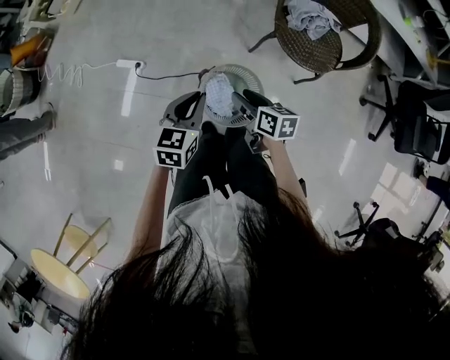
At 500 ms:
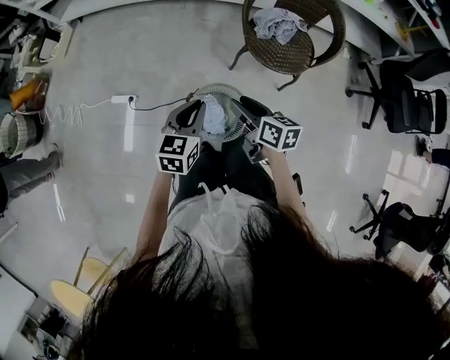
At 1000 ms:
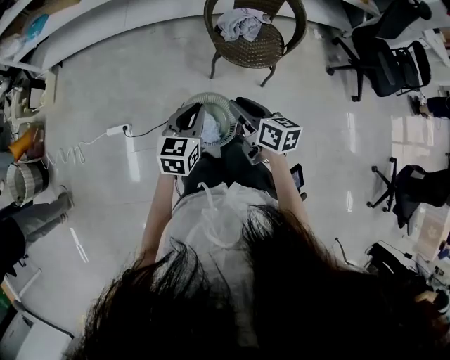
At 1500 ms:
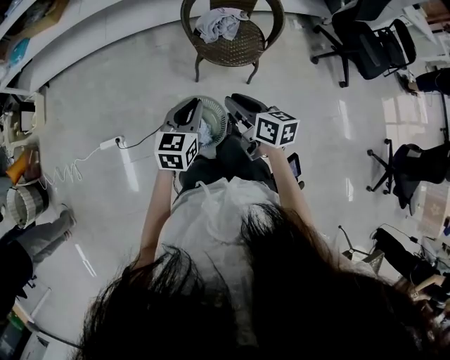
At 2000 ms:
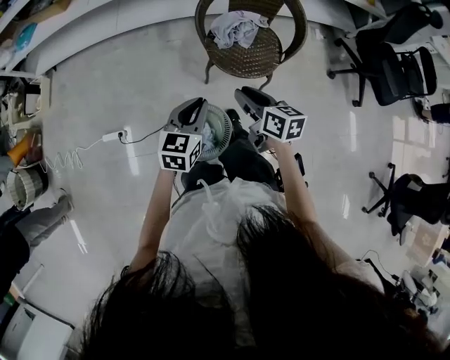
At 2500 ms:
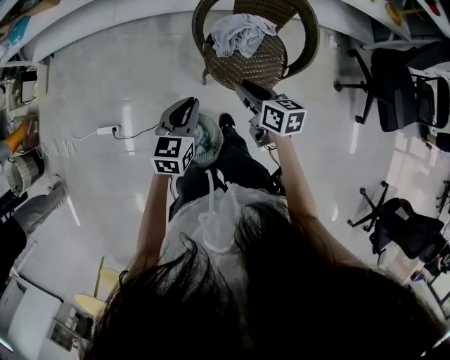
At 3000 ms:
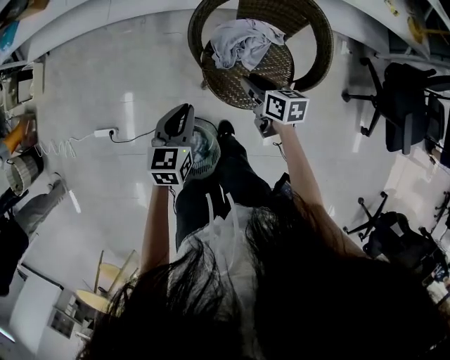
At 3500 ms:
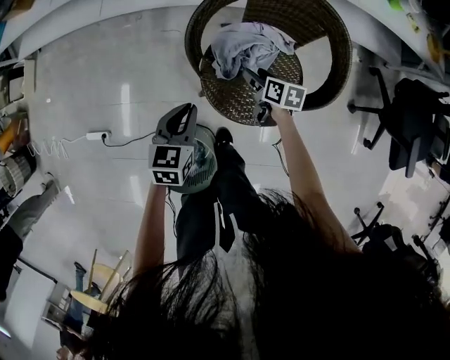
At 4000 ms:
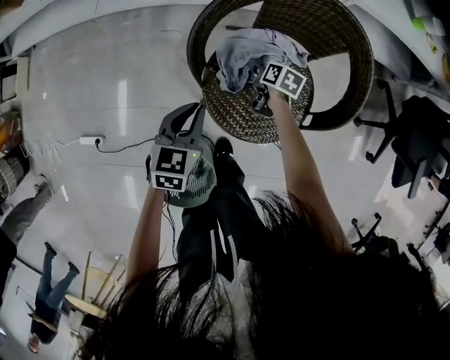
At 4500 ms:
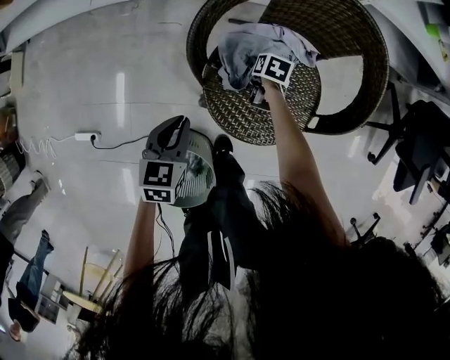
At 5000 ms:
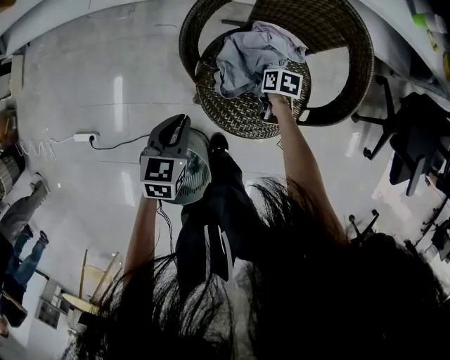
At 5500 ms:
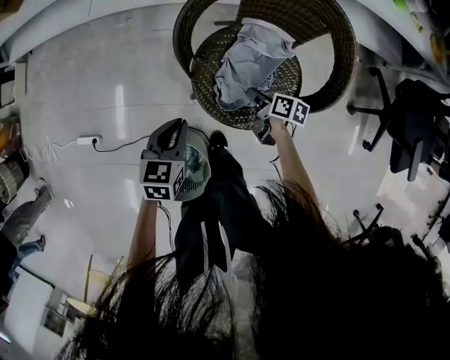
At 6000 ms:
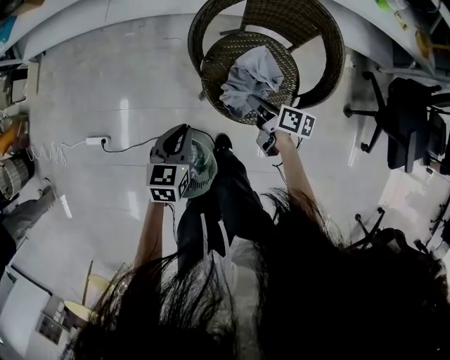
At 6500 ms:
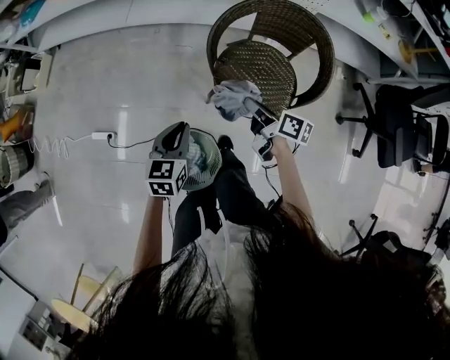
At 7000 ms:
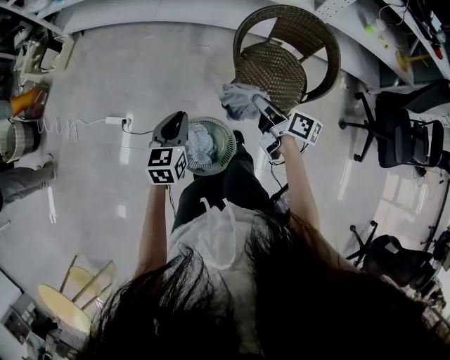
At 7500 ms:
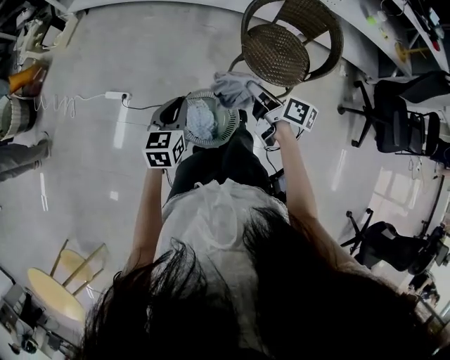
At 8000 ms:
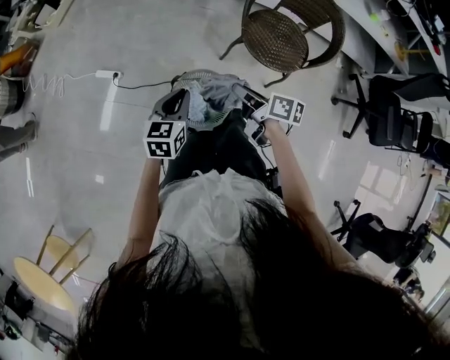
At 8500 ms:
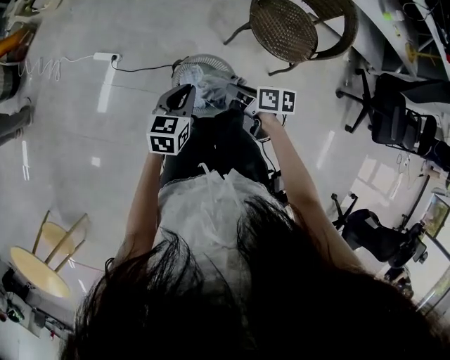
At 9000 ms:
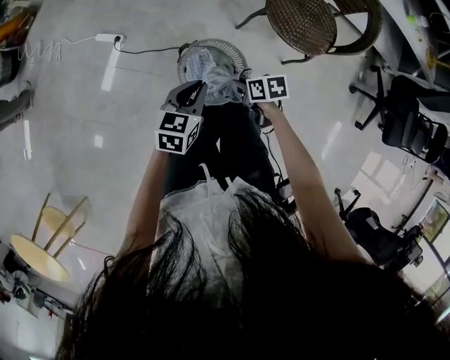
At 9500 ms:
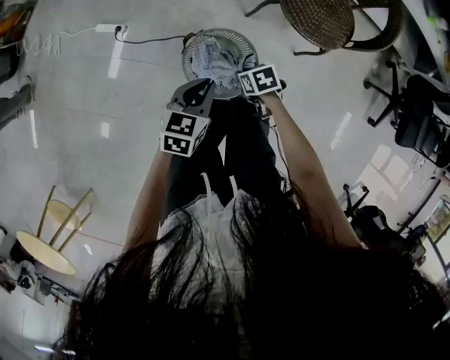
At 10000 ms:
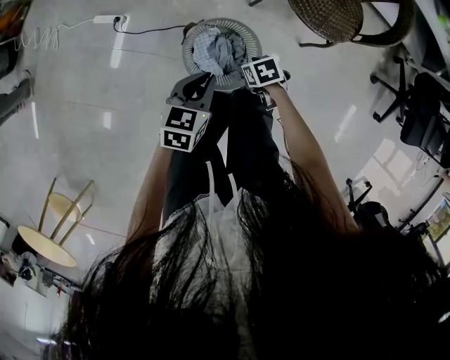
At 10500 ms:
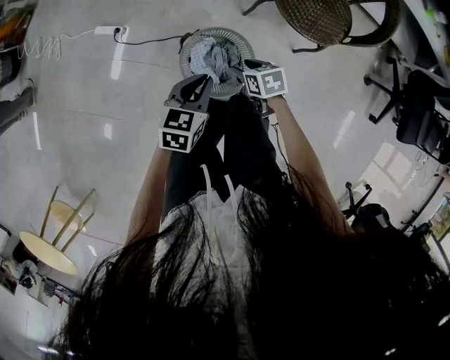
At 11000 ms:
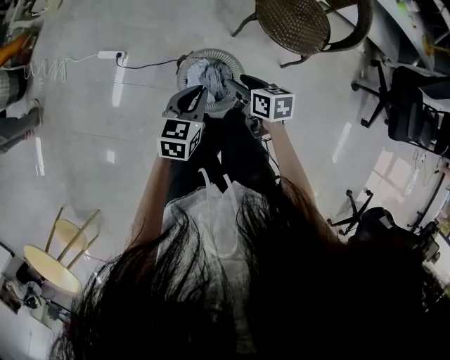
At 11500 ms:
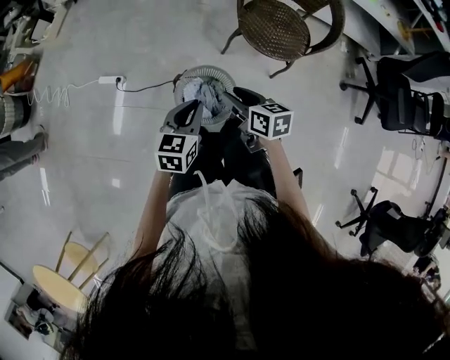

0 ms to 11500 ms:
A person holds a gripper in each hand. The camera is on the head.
0 ms to 2000 ms: The right gripper changes place by some 25 cm, and rotates approximately 20 degrees, while the left gripper ends up some 25 cm from where it was, and rotates roughly 20 degrees.
2000 ms to 4000 ms: The right gripper shifts some 60 cm downward and forward, angles its fingers downward, by about 30 degrees, and opens up; the left gripper travels forward and downward by some 40 cm.
4000 ms to 6000 ms: The right gripper heads backward and upward, covering roughly 25 cm, swivels approximately 30 degrees, and closes its fingers; the left gripper is displaced backward and upward by roughly 15 cm.
6000 ms to 7500 ms: The right gripper is displaced to the left, upward and backward by some 40 cm. The left gripper heads to the left, backward and upward, covering some 35 cm.
7500 ms to 9500 ms: The left gripper moves downward and backward, approximately 15 cm. The right gripper moves downward, approximately 30 cm, and tilts its fingers roughly 50 degrees downward.
9500 ms to 11500 ms: The right gripper is displaced upward by some 25 cm, angles its fingers upward, by roughly 30 degrees, and opens up, while the left gripper shifts about 10 cm upward.

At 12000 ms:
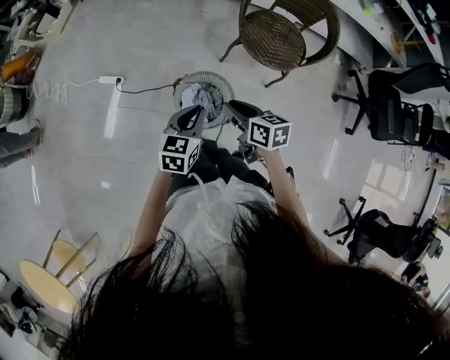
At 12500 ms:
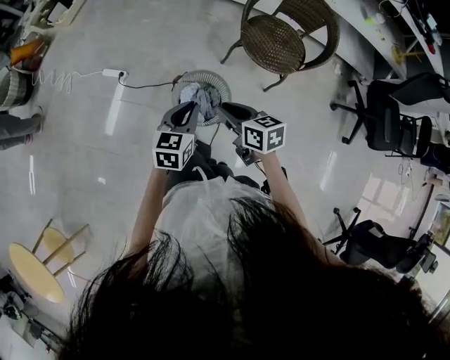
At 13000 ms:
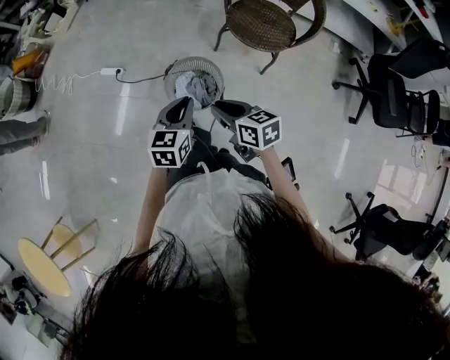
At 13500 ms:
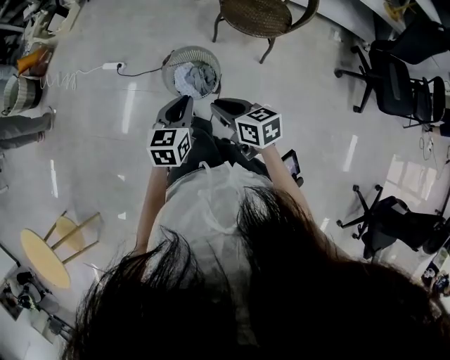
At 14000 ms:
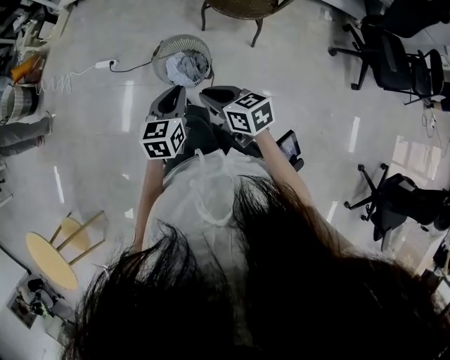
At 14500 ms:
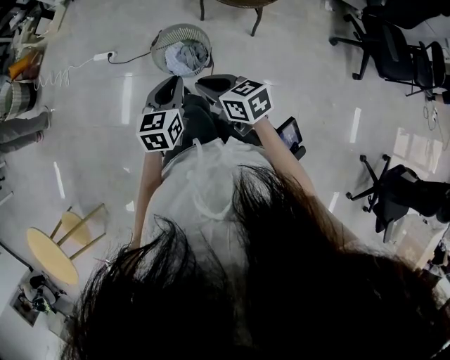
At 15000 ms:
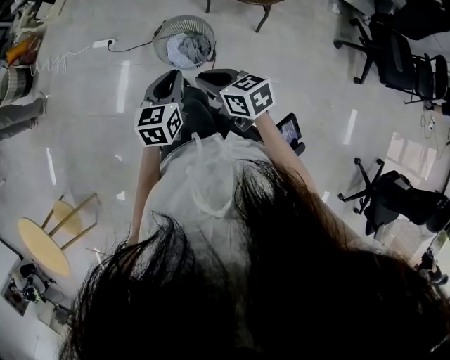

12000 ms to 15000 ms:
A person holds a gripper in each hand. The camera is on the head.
12000 ms to 13500 ms: Both grippers move backward, some 20 cm.
13500 ms to 15000 ms: The grippers move only a little.

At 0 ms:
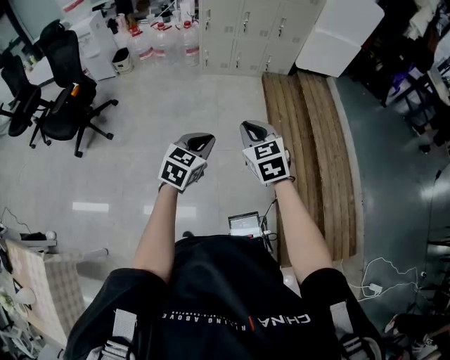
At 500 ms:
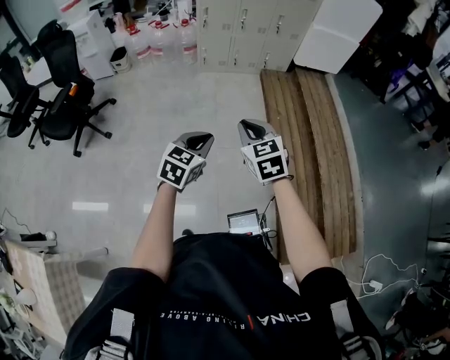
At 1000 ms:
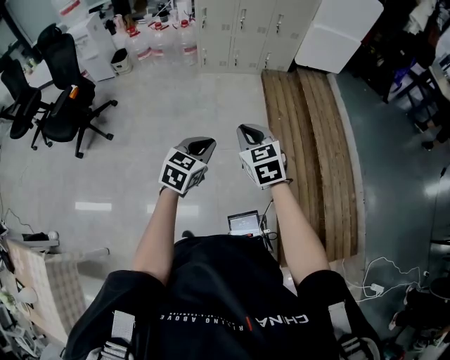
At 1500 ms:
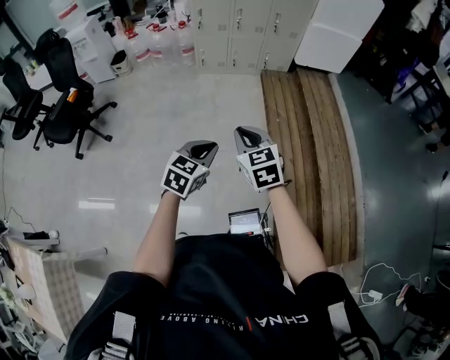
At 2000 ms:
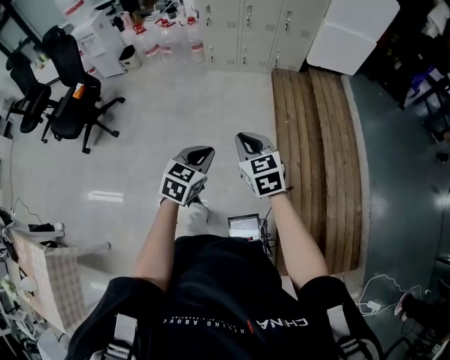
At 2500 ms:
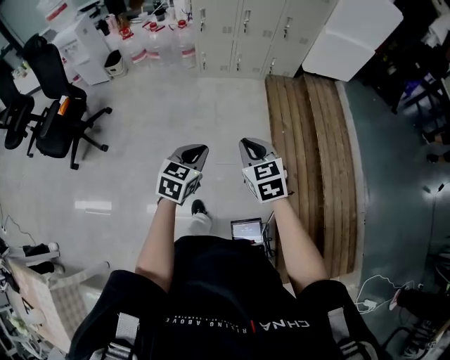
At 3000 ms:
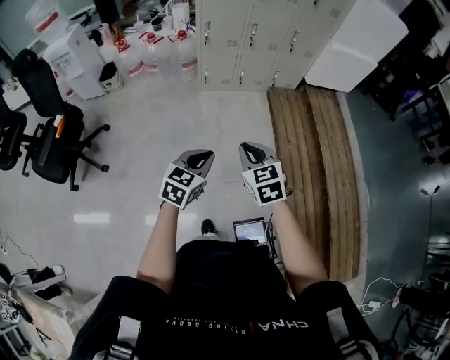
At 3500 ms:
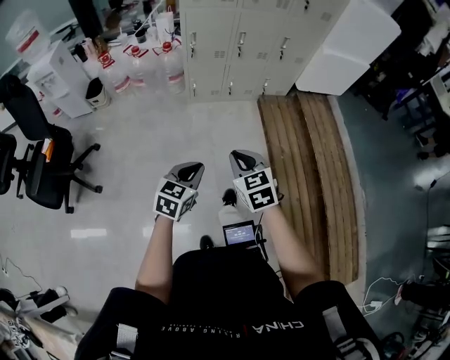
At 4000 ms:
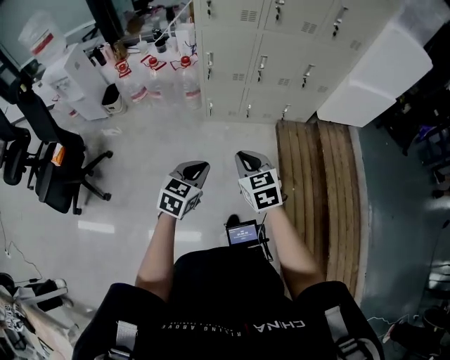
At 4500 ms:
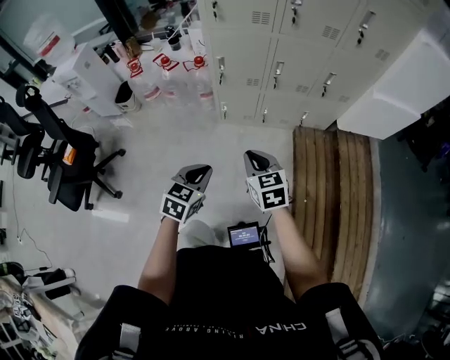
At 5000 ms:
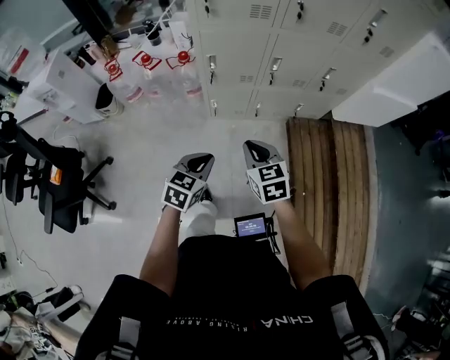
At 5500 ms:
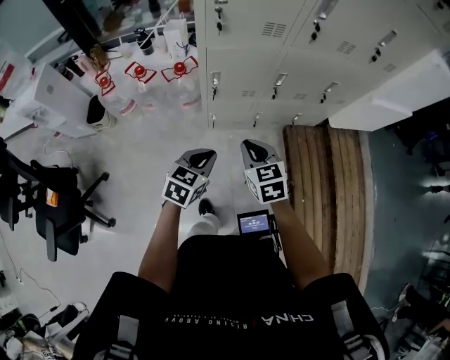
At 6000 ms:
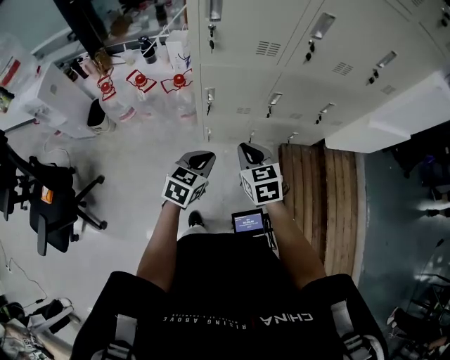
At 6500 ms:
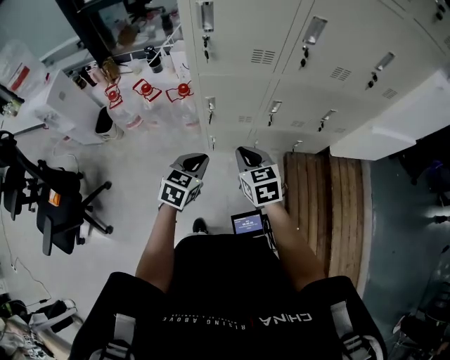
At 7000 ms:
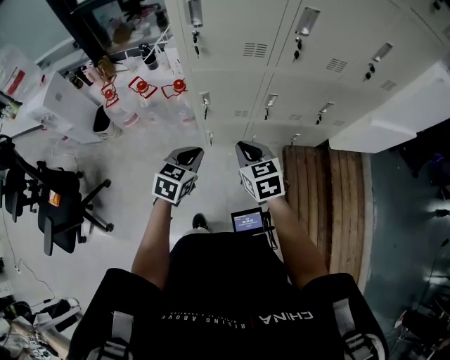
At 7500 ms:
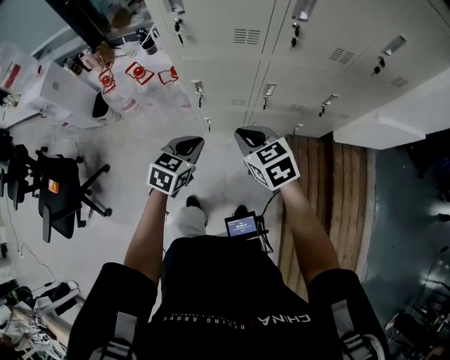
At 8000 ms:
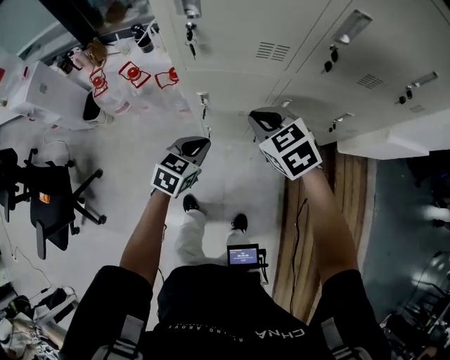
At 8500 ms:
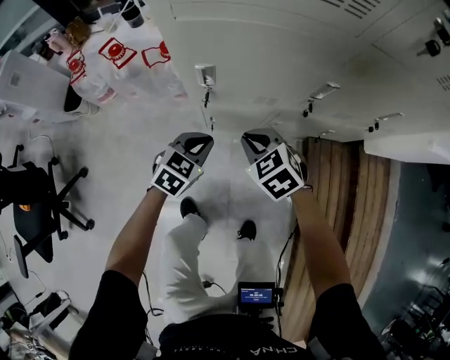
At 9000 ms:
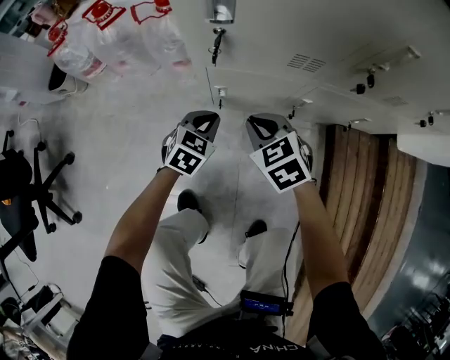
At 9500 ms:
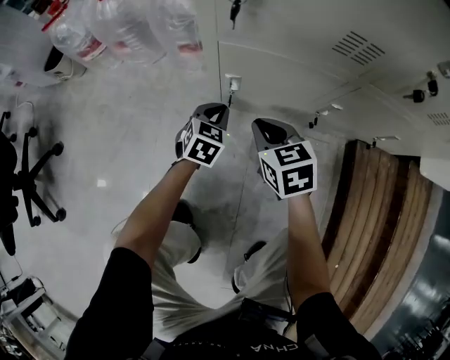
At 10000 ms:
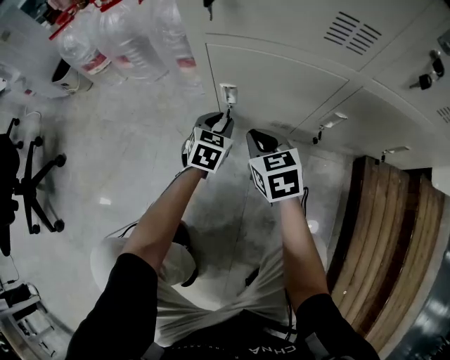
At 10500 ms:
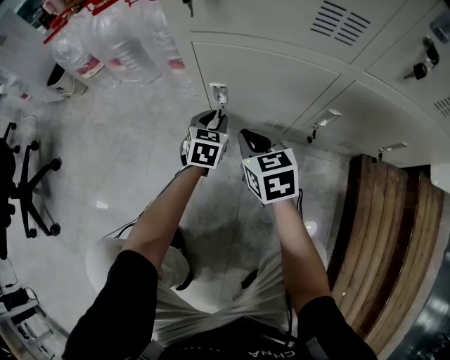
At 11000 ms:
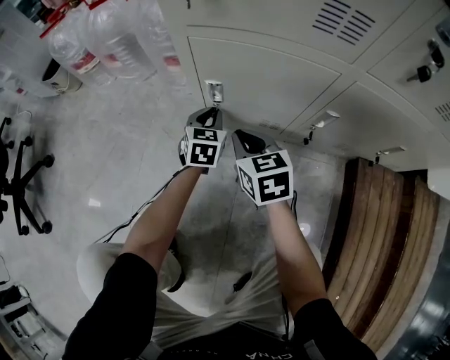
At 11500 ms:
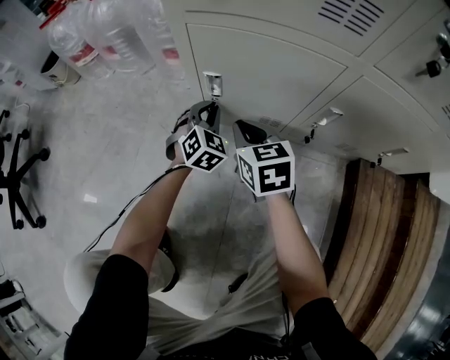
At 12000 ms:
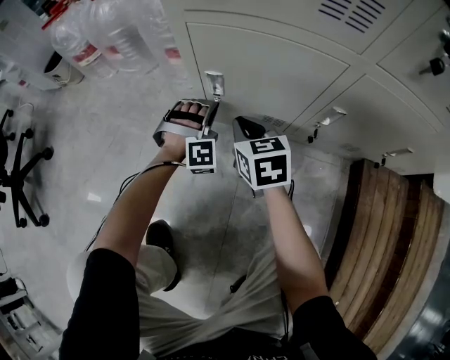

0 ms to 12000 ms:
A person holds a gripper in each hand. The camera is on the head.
0 ms to 2000 ms: The left gripper shifts about 10 cm to the right, while the right gripper goes approximately 10 cm to the right and forward.
2000 ms to 4000 ms: The two grippers travel together, forward, about 60 cm.
4000 ms to 6000 ms: The two grippers go approximately 40 cm forward.
6000 ms to 8000 ms: Both grippers travel together forward, approximately 15 cm. The right gripper rotates roughly 20 degrees.
8000 ms to 10000 ms: Both grippers travel together downward, roughly 70 cm. The left gripper swivels roughly 20 degrees.
10000 ms to 12000 ms: The left gripper rotates around the line of its fingers by some 70 degrees, clockwise from behind.
